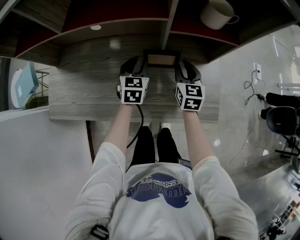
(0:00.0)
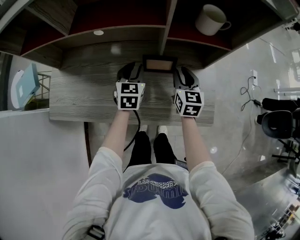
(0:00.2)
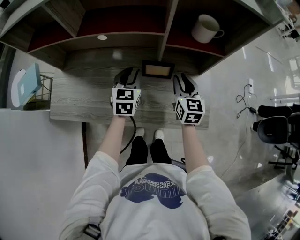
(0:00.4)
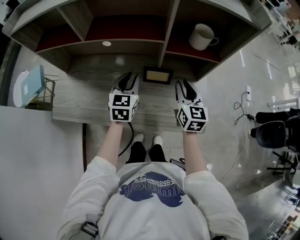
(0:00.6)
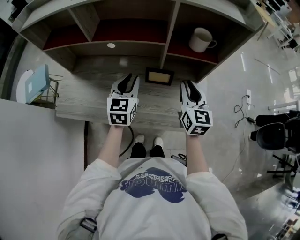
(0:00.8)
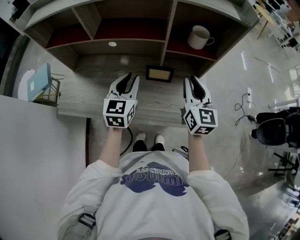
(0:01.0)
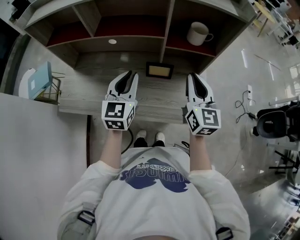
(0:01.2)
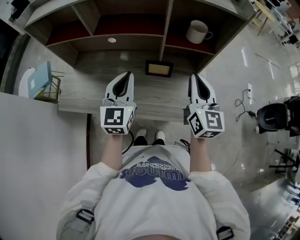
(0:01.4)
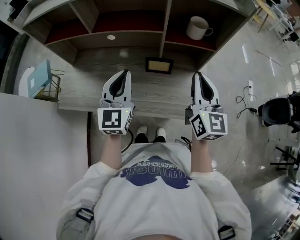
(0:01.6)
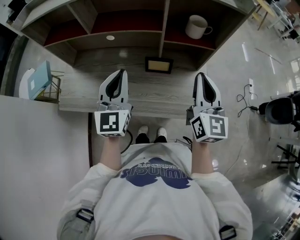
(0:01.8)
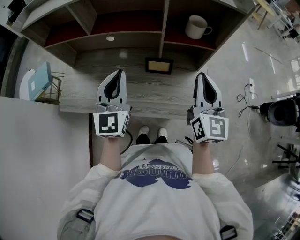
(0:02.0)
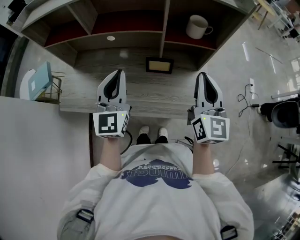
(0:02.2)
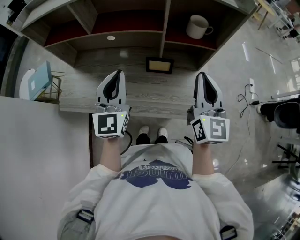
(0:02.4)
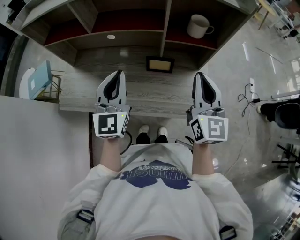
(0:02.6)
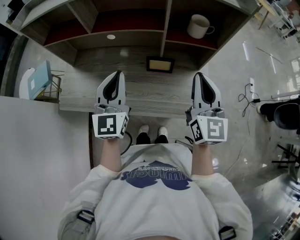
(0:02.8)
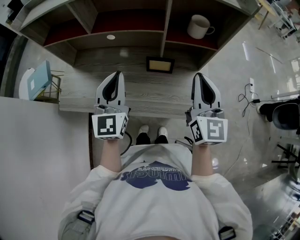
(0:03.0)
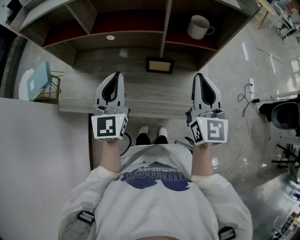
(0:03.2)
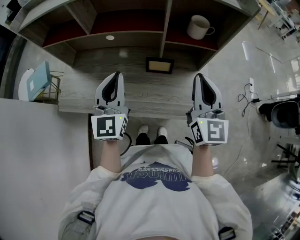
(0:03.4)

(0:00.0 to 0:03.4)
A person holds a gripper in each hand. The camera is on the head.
0:00.0 - 0:01.6: The two grippers go some 30 cm upward and backward. The right gripper changes its angle by approximately 30 degrees, and closes its fingers; the left gripper changes its angle by some 30 degrees, and closes its fingers.
0:01.6 - 0:03.4: The grippers make only small movements.

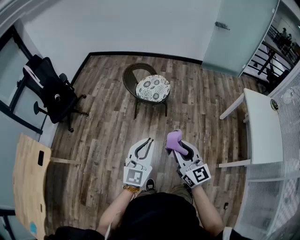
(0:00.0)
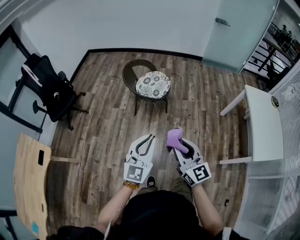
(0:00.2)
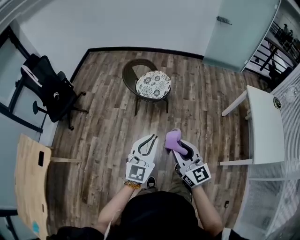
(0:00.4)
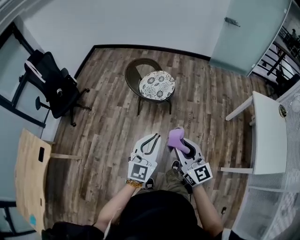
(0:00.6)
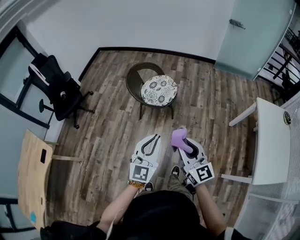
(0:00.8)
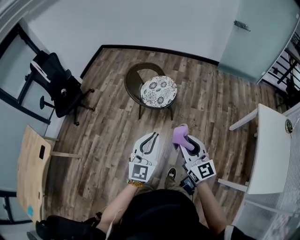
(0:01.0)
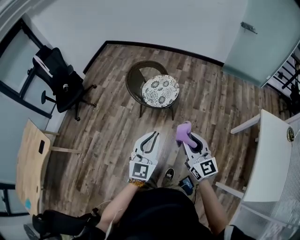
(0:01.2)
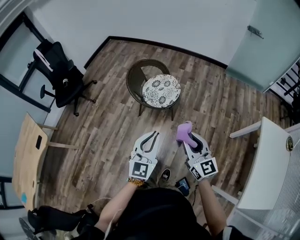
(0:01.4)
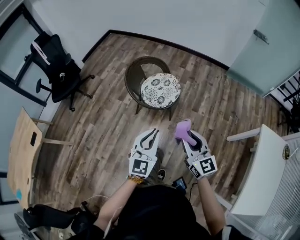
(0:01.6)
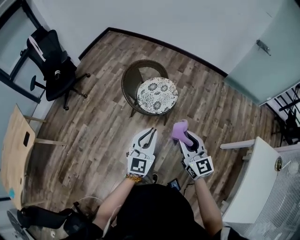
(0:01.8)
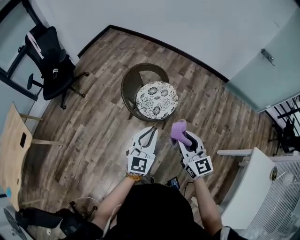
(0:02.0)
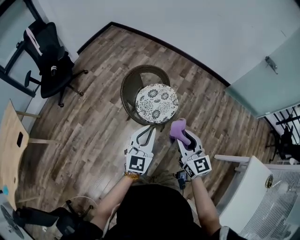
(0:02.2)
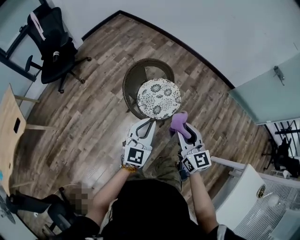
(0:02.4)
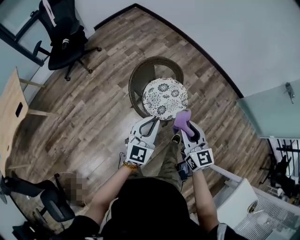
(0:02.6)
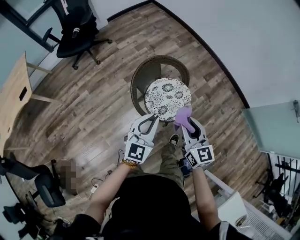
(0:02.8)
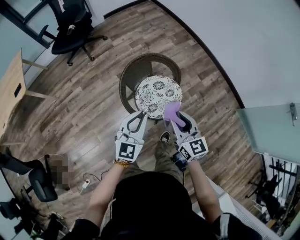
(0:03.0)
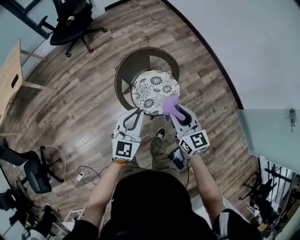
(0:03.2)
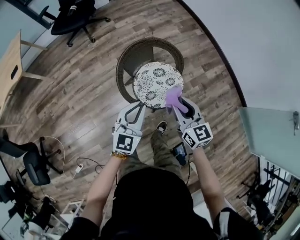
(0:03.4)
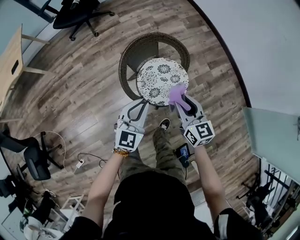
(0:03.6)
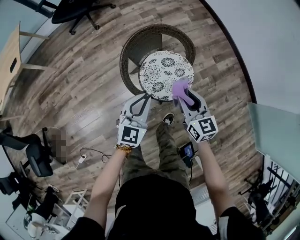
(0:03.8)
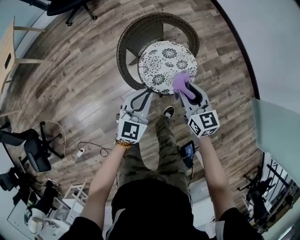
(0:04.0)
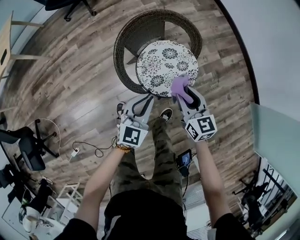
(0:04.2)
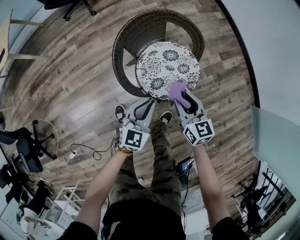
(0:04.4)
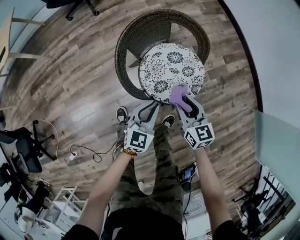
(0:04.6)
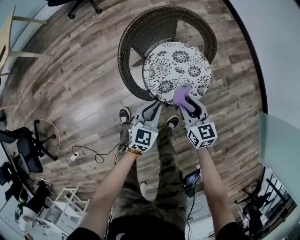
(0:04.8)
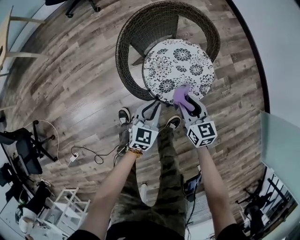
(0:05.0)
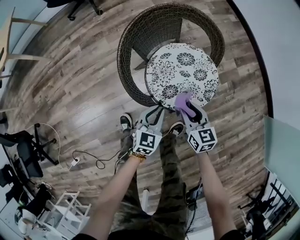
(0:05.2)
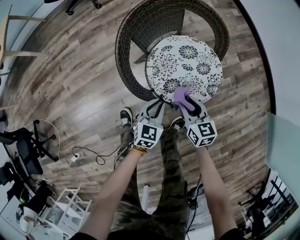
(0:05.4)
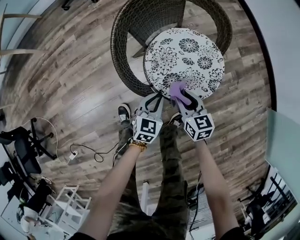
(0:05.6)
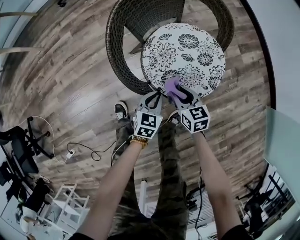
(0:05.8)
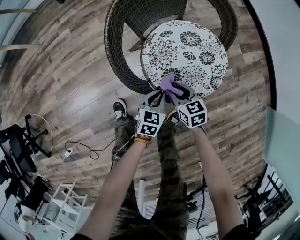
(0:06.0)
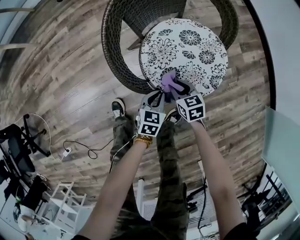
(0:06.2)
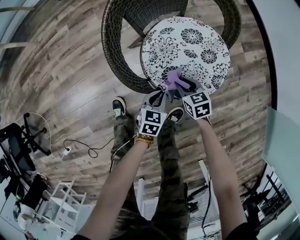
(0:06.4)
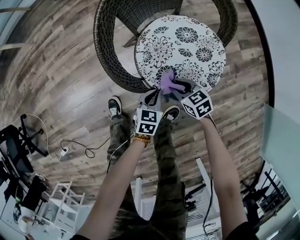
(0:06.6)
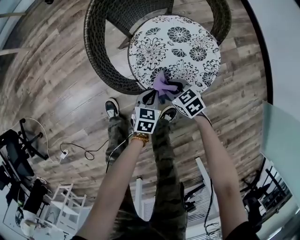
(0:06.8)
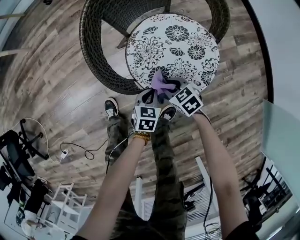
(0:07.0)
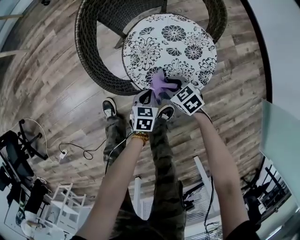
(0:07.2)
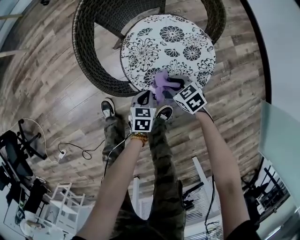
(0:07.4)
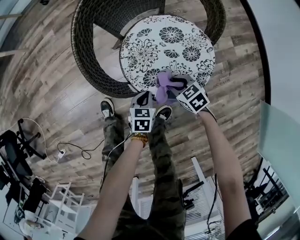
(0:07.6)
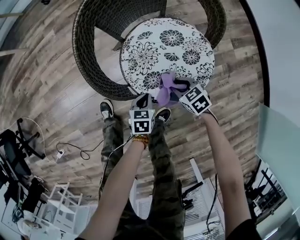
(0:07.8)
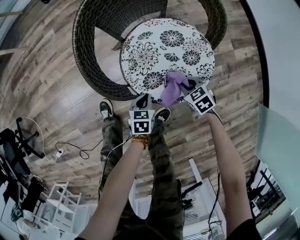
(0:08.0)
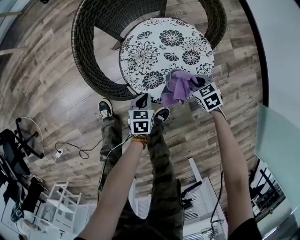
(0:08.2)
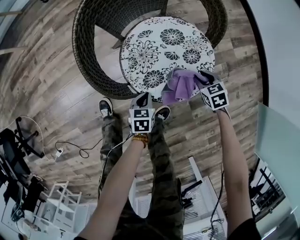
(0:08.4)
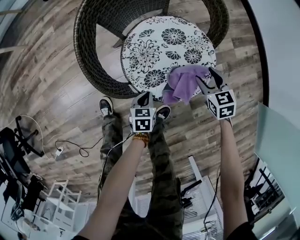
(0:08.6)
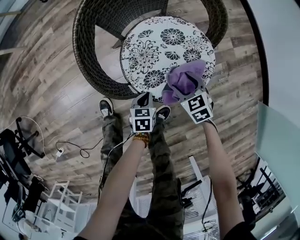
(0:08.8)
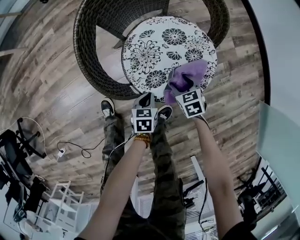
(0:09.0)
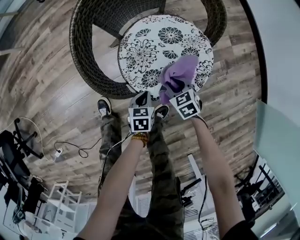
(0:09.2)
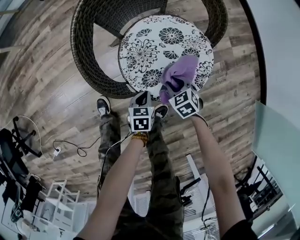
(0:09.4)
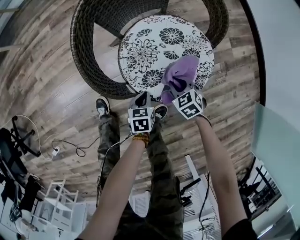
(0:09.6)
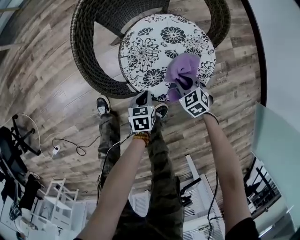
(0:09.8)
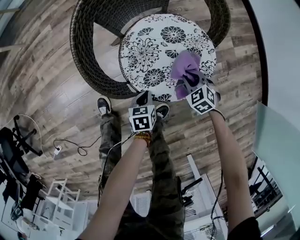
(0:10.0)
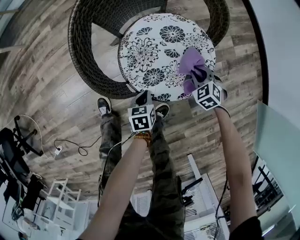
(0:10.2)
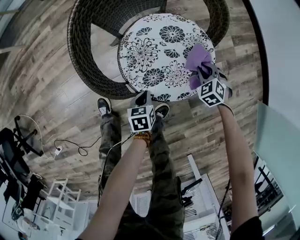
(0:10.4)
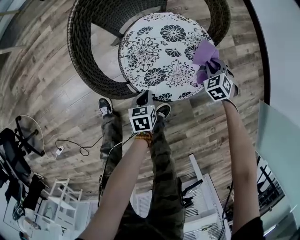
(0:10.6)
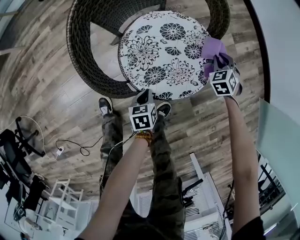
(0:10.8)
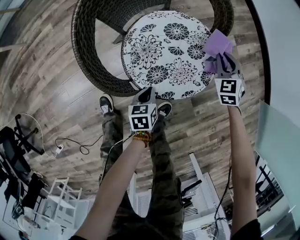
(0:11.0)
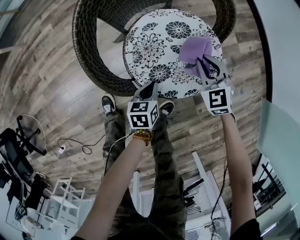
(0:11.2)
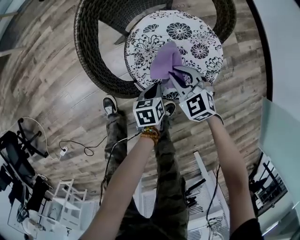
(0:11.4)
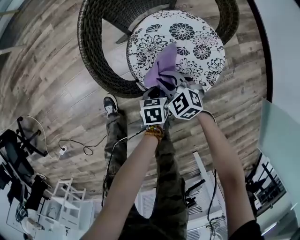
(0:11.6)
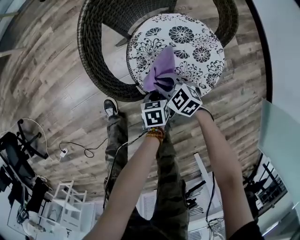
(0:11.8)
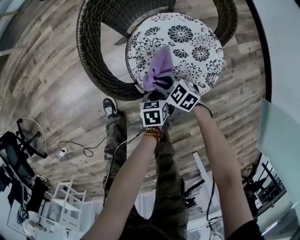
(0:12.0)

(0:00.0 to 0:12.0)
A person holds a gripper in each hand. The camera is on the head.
0:00.0 - 0:01.6: The two grippers go about 35 cm forward and to the right.
0:01.6 - 0:03.0: The left gripper shifts by approximately 35 cm, and turns by some 30 degrees. Meanwhile the right gripper changes place by about 40 cm, and swivels about 30 degrees.
0:03.0 - 0:04.4: The grippers both shift downward by some 25 cm.
0:04.4 - 0:06.0: The two grippers go roughly 30 cm downward. The right gripper changes its angle by about 20 degrees, while the left gripper swivels some 30 degrees.
0:06.0 - 0:07.6: The right gripper travels to the right and downward by roughly 10 cm, and turns by roughly 30 degrees. Meanwhile the left gripper is displaced downward by approximately 5 cm.
0:07.6 - 0:09.0: The right gripper reaches some 15 cm to the right, then returns, and opens up.
0:09.0 - 0:10.4: The right gripper heads to the right and forward, covering approximately 15 cm, changes its angle by some 40 degrees, and closes its fingers.
0:10.4 - 0:12.0: The right gripper travels upward and back again, roughly 10 cm each way, and turns by approximately 40 degrees.

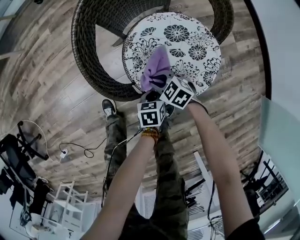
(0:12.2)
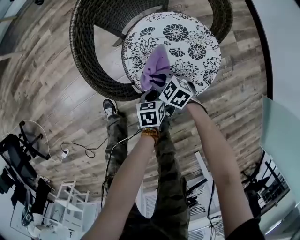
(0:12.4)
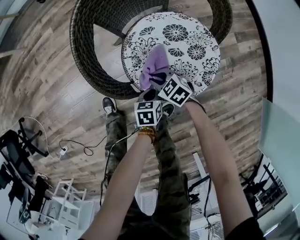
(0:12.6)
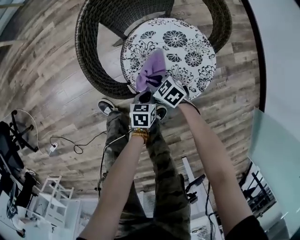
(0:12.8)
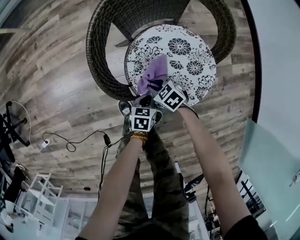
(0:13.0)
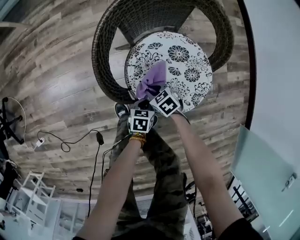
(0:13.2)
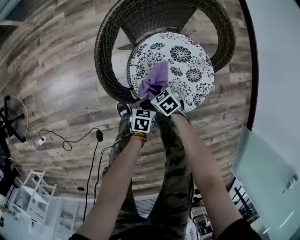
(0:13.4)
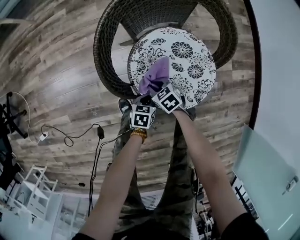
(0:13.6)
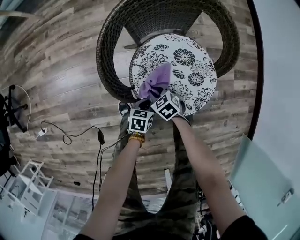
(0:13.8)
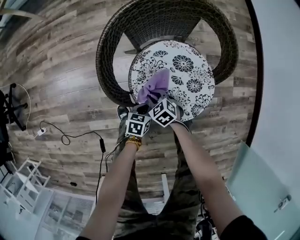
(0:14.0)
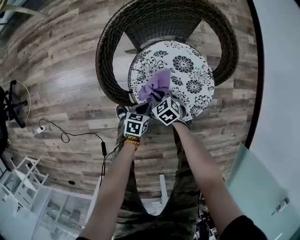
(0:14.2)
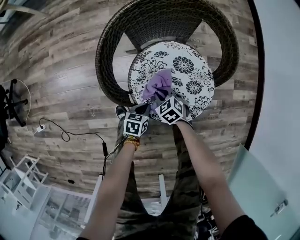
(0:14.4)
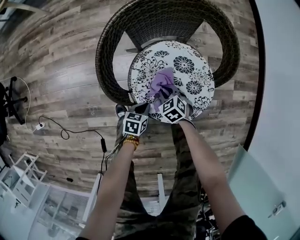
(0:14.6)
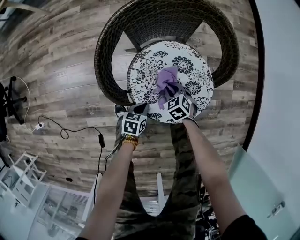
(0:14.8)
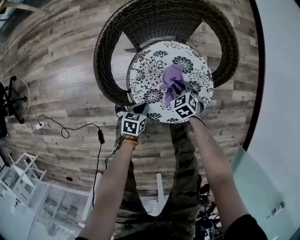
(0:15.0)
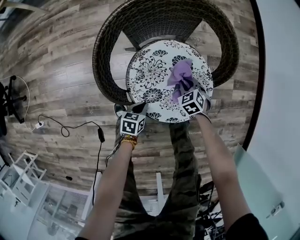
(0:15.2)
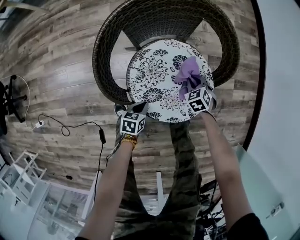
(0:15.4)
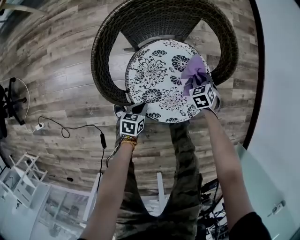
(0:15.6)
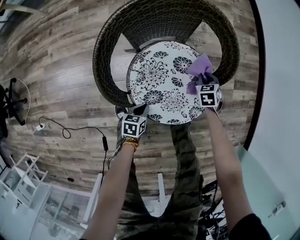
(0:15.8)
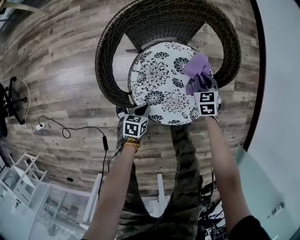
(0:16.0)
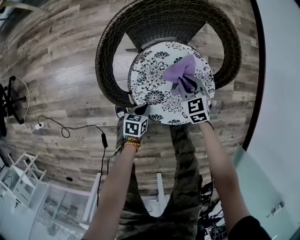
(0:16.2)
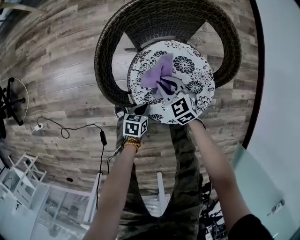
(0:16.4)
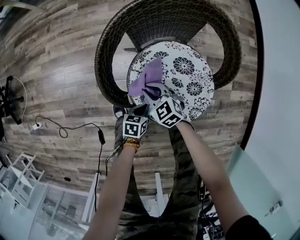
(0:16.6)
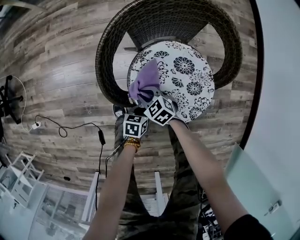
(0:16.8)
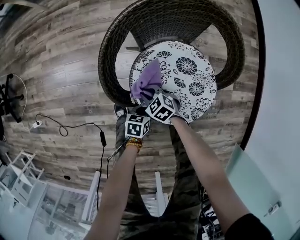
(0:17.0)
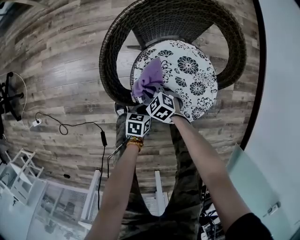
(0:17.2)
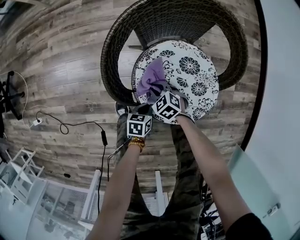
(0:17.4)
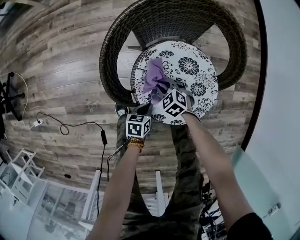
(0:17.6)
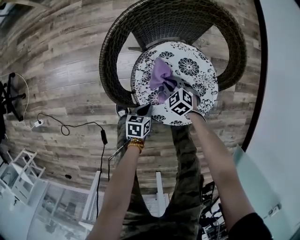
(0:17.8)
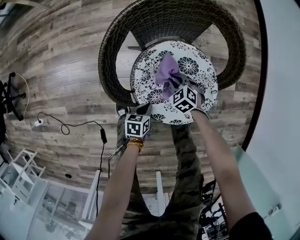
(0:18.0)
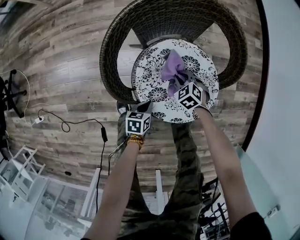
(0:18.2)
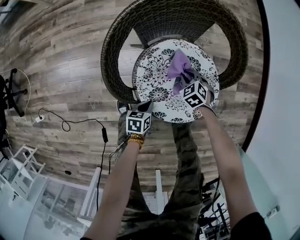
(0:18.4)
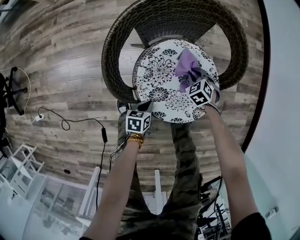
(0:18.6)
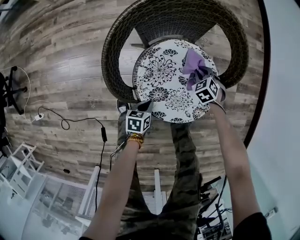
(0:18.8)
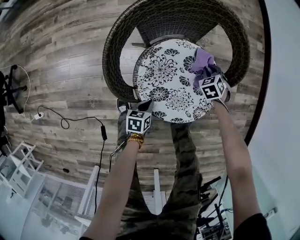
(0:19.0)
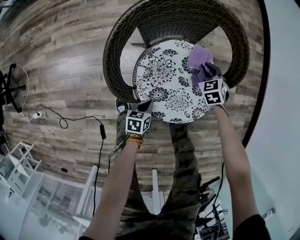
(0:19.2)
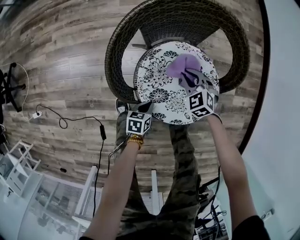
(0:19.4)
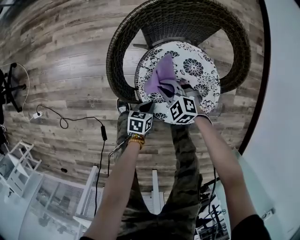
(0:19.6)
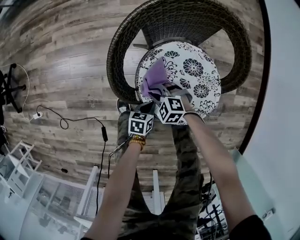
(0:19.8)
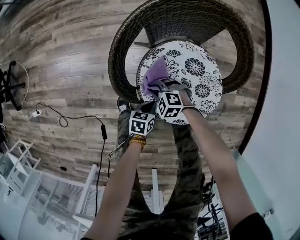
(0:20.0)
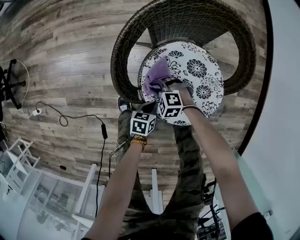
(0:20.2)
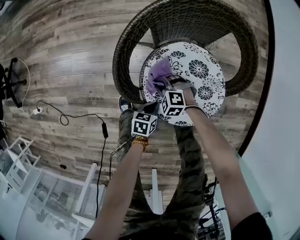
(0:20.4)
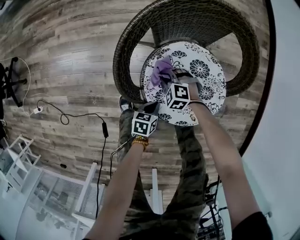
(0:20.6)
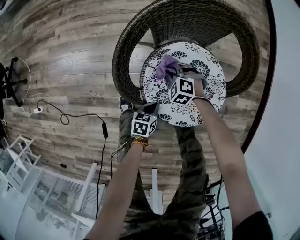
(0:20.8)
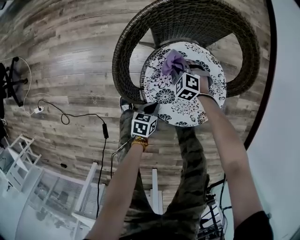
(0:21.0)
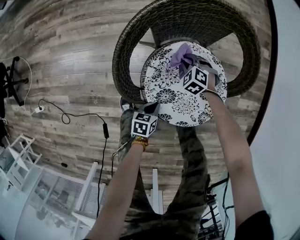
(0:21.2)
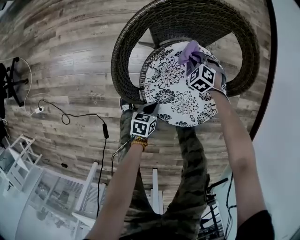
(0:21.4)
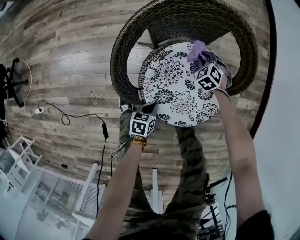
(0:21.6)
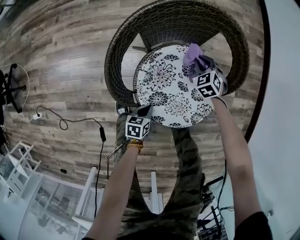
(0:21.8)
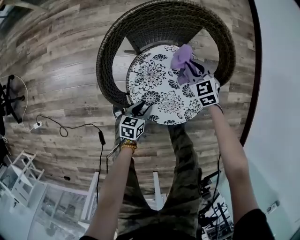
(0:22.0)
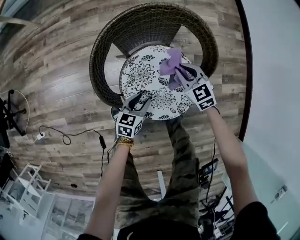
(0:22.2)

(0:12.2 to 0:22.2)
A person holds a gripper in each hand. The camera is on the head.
0:12.2 - 0:13.6: The grippers stay close to where they were, moving slightly.
0:13.6 - 0:15.0: The right gripper shifts about 15 cm to the right and forward, and turns by roughly 20 degrees.
0:15.0 - 0:16.4: The right gripper changes place by about 15 cm, and swivels about 20 degrees.
0:16.4 - 0:18.0: The right gripper travels downward by some 10 cm, and turns by about 20 degrees.
0:18.0 - 0:19.4: The right gripper is displaced upward by some 10 cm, and reaches some 15 cm to the right, then returns.
0:19.4 - 0:20.8: The right gripper travels downward by approximately 10 cm, and rotates roughly 30 degrees.
0:20.8 - 0:22.2: The left gripper shifts about 15 cm upward and forward, swivels some 20 degrees, and opens its fingers, while the right gripper is displaced upward and to the right by some 25 cm, and changes its angle by about 50 degrees.
